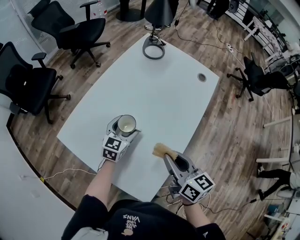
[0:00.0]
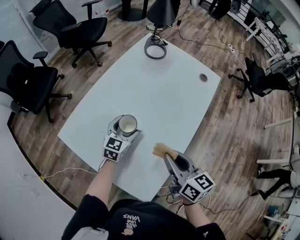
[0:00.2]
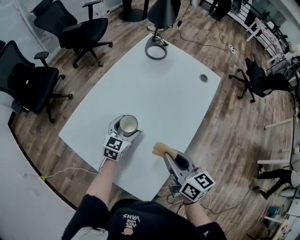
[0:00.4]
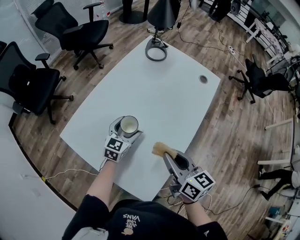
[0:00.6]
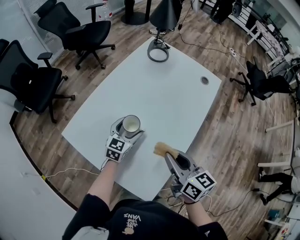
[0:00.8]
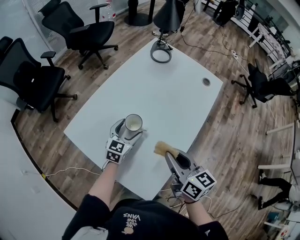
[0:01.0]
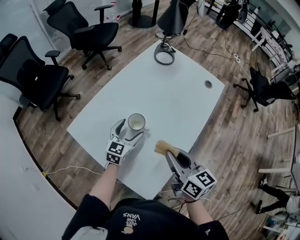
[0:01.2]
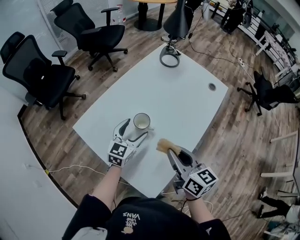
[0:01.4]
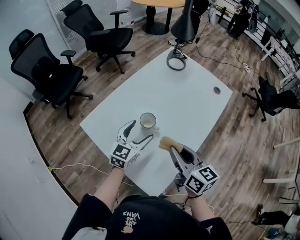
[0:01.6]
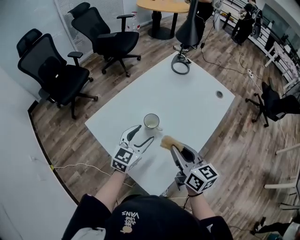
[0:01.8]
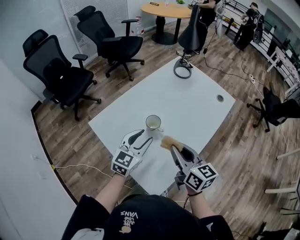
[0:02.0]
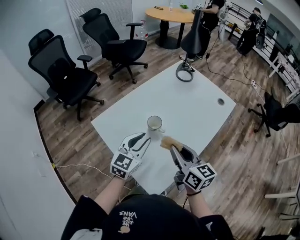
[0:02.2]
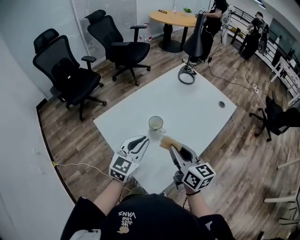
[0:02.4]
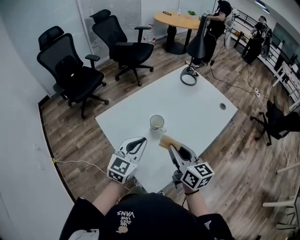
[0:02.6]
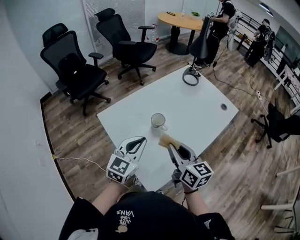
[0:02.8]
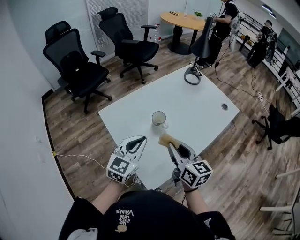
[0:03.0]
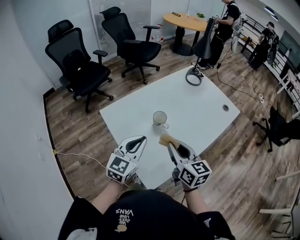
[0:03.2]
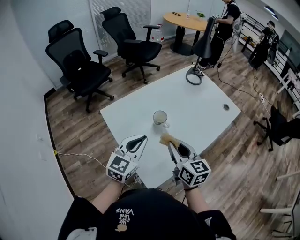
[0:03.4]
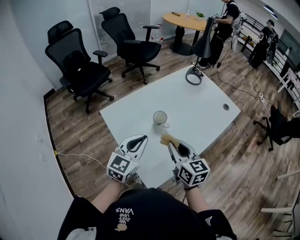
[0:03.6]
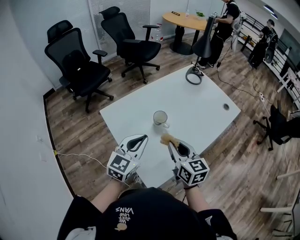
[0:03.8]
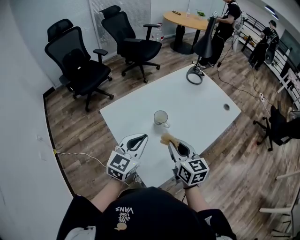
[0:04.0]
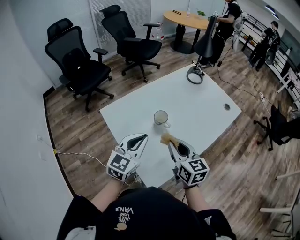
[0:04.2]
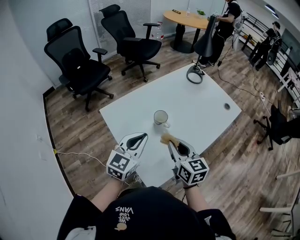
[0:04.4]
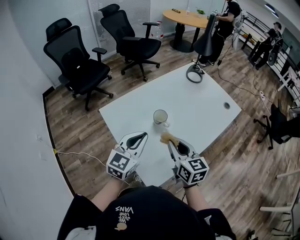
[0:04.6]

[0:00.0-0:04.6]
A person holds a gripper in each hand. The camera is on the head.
0.0 to 1.6 s: The left gripper moves upward and backward, about 10 cm, while the right gripper changes place by some 5 cm.
1.6 to 3.0 s: The left gripper moves backward and upward, some 15 cm, and closes; the right gripper ends up about 5 cm from where it was.
3.0 to 4.6 s: The grippers move only a little.

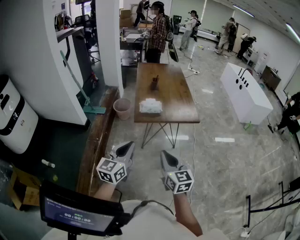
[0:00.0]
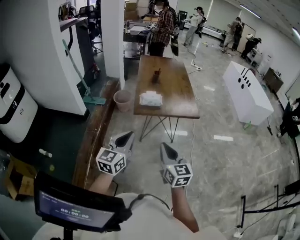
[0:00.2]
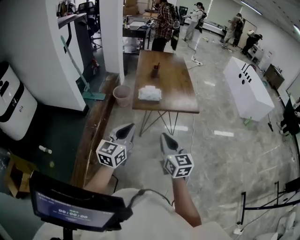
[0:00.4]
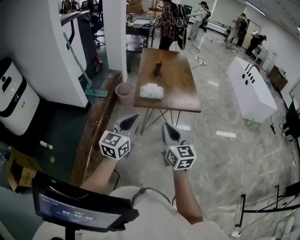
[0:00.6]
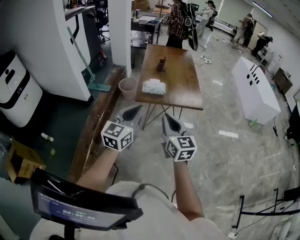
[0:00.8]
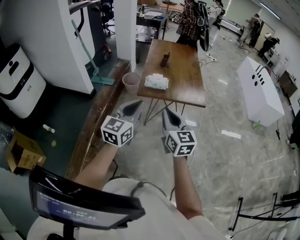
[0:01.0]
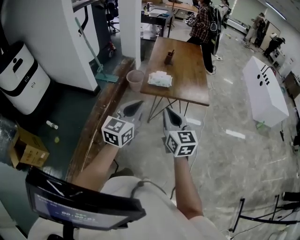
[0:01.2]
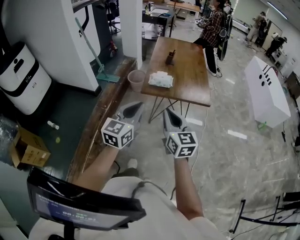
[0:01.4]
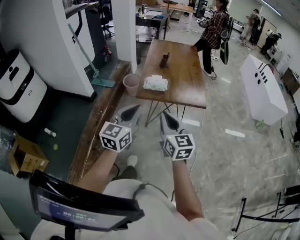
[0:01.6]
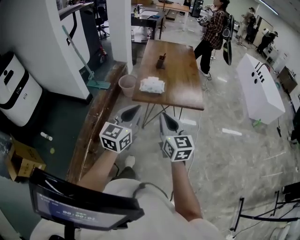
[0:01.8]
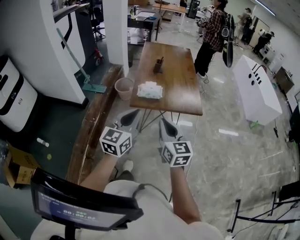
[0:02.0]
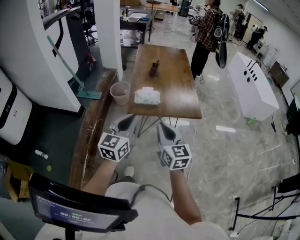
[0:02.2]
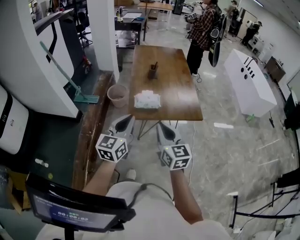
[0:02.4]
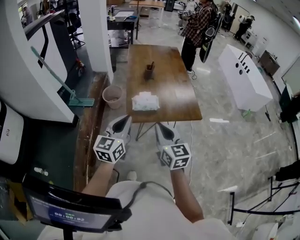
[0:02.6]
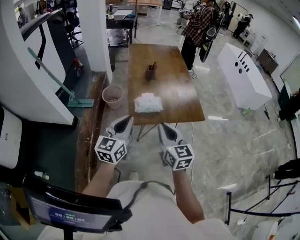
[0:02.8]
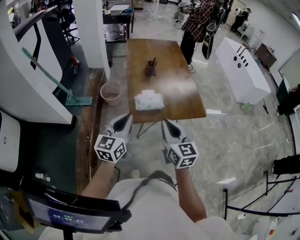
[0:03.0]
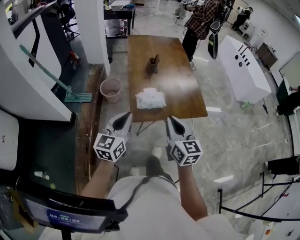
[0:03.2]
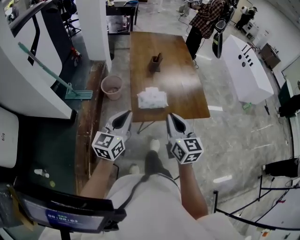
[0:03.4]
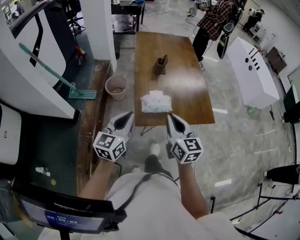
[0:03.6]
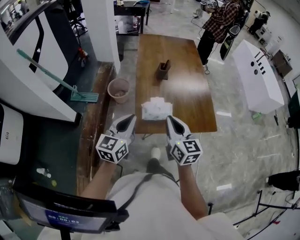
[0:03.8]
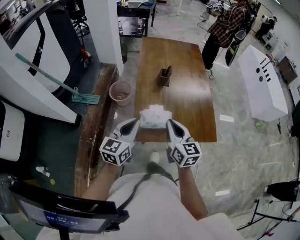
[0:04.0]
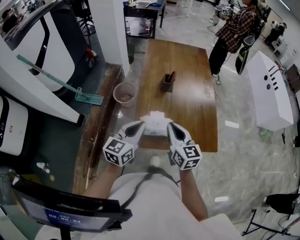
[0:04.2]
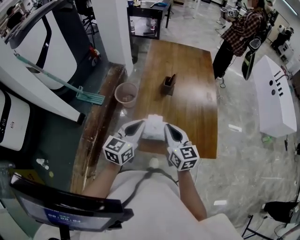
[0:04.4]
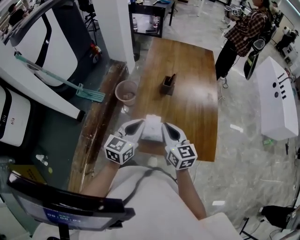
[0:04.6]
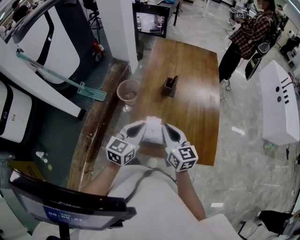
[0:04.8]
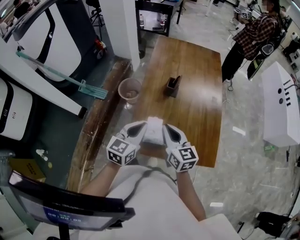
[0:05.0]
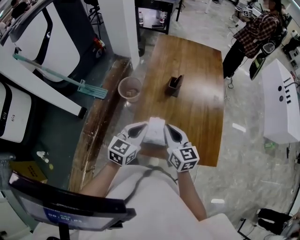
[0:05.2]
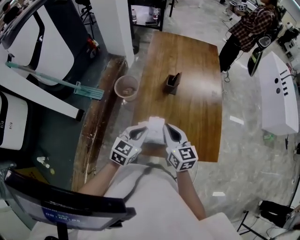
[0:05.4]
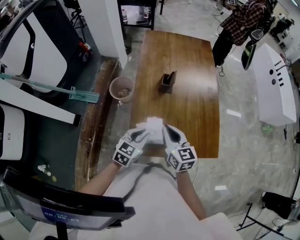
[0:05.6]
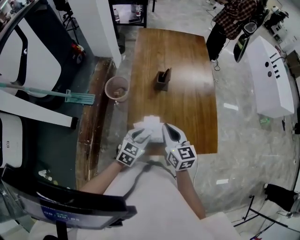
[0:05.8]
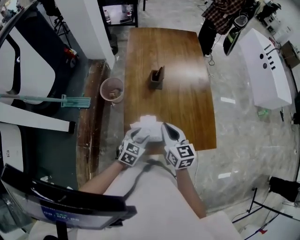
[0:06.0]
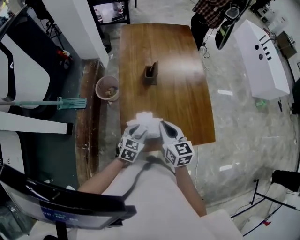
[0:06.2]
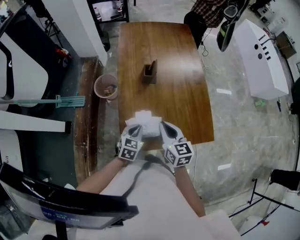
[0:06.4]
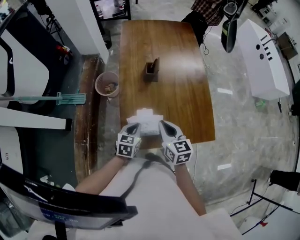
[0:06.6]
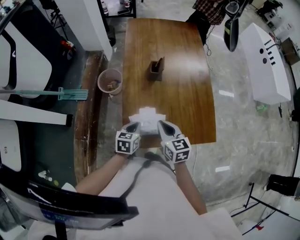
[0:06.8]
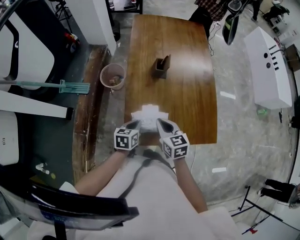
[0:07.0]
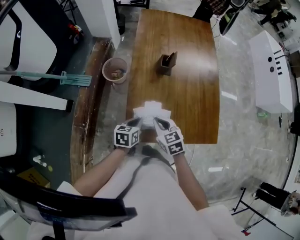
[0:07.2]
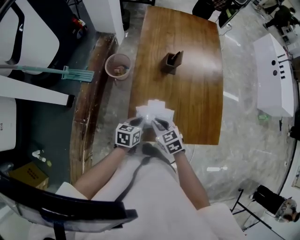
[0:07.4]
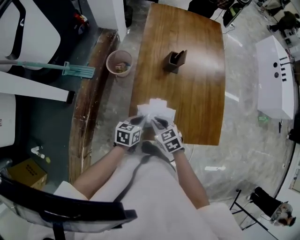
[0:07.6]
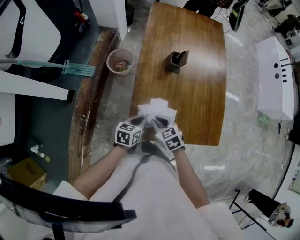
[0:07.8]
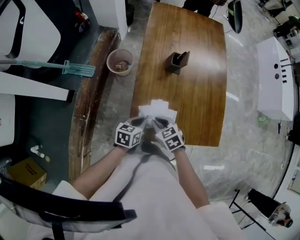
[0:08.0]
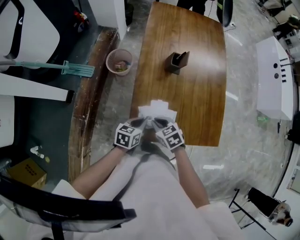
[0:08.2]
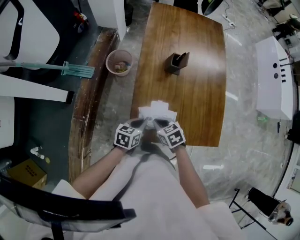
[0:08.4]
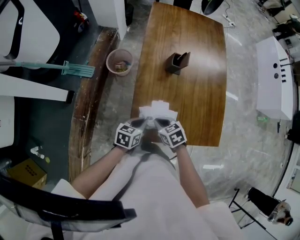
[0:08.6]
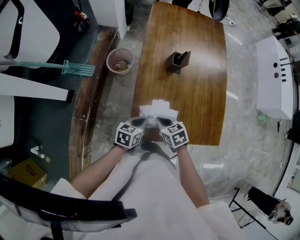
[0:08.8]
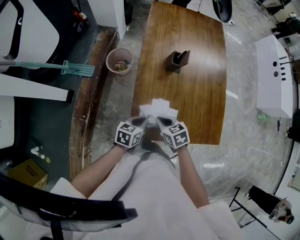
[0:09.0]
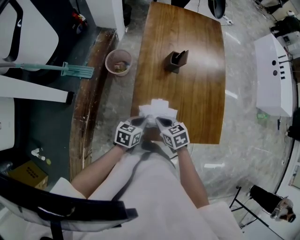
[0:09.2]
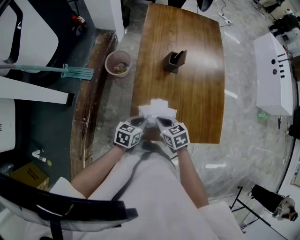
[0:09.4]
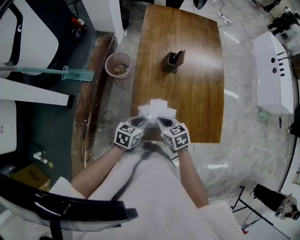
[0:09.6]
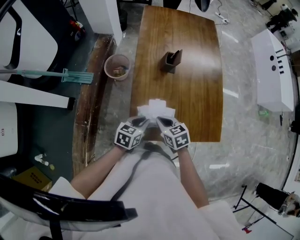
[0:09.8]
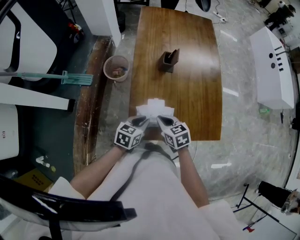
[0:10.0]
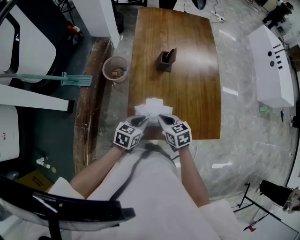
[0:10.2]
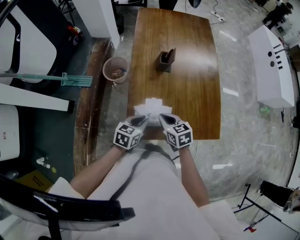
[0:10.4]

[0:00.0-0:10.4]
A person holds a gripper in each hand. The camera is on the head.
0.0 to 1.4 s: The left gripper heads to the right, covering approximately 10 cm, while the right gripper heads forward, covering about 5 cm.
1.4 to 3.0 s: The left gripper travels forward and to the left by about 30 cm, while the right gripper shifts some 20 cm forward.
3.0 to 4.4 s: The two grippers go some 25 cm forward.
4.4 to 6.0 s: The left gripper heads downward, covering roughly 20 cm, turns by approximately 30 degrees, and opens, while the right gripper ends up approximately 5 cm from where it was.
6.0 to 7.4 s: The left gripper ends up some 5 cm from where it was, swivels about 30 degrees, and closes its fingers; the right gripper heads downward and to the left, covering about 15 cm, and changes its angle by some 40 degrees.
7.4 to 9.0 s: The grippers move only a little.
9.0 to 10.4 s: The right gripper shifts by roughly 5 cm.

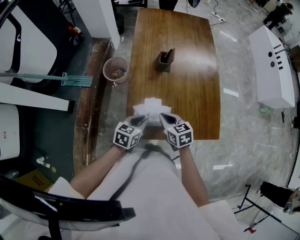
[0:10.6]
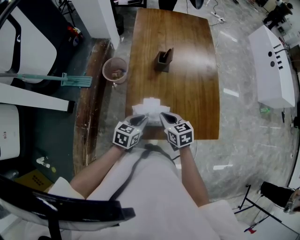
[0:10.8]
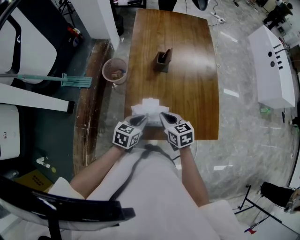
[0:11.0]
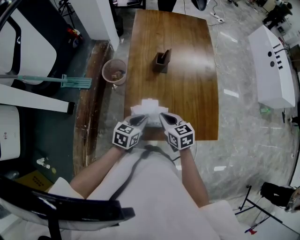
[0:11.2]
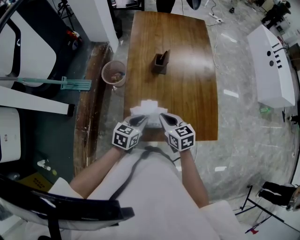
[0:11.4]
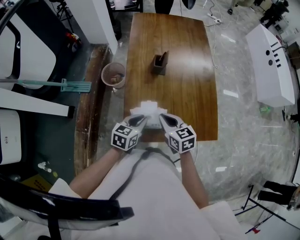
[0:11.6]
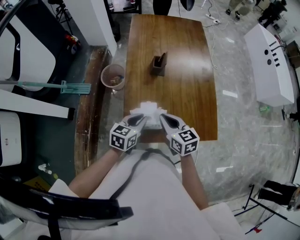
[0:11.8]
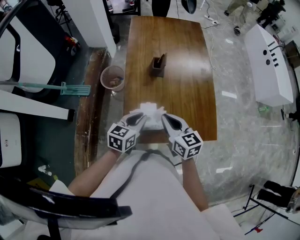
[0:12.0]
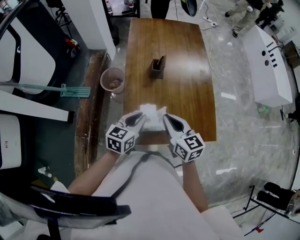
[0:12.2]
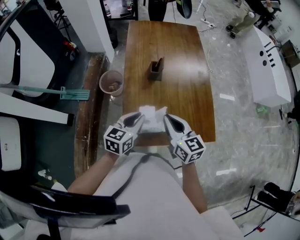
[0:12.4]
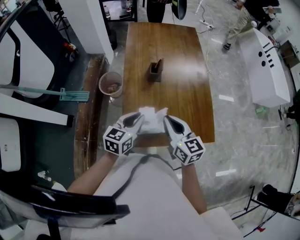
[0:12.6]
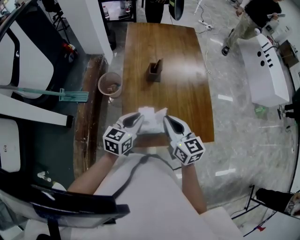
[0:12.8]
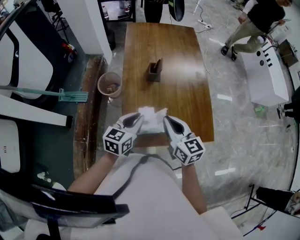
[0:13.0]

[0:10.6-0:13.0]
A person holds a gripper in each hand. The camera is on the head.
10.6 to 11.8 s: The left gripper shifts by roughly 5 cm. The right gripper heads upward, covering some 10 cm.
11.8 to 13.0 s: The two grippers go approximately 5 cm upward.

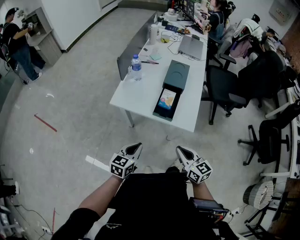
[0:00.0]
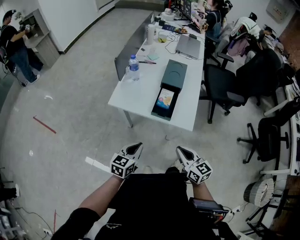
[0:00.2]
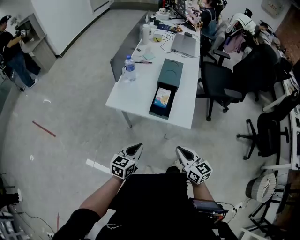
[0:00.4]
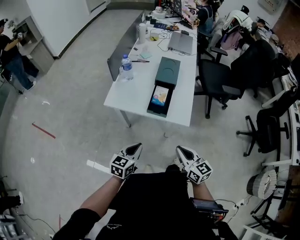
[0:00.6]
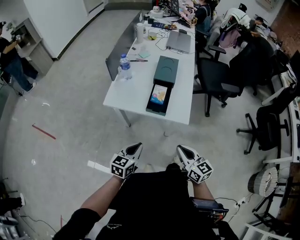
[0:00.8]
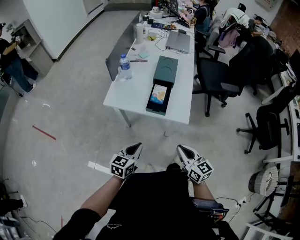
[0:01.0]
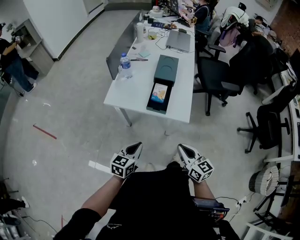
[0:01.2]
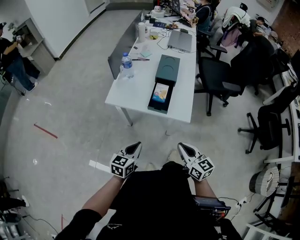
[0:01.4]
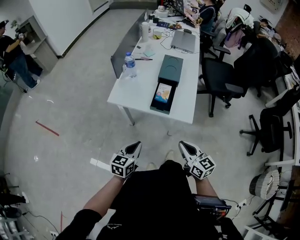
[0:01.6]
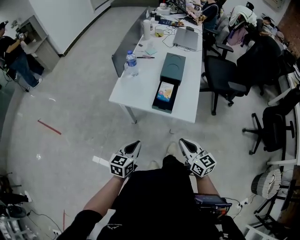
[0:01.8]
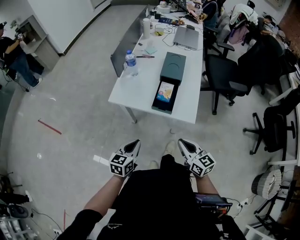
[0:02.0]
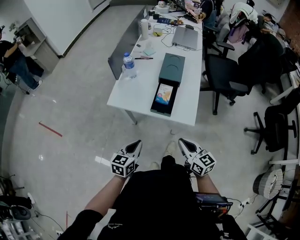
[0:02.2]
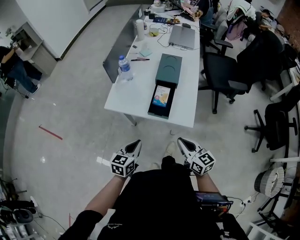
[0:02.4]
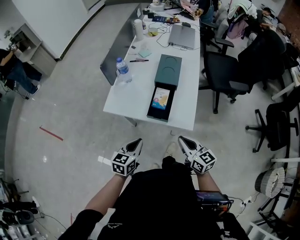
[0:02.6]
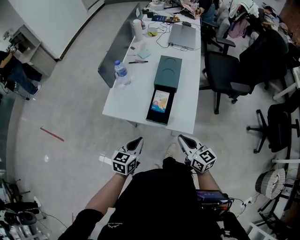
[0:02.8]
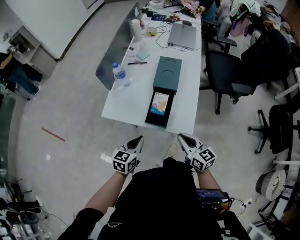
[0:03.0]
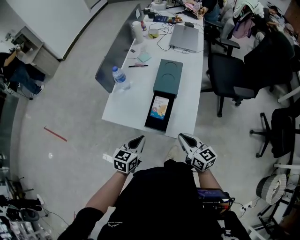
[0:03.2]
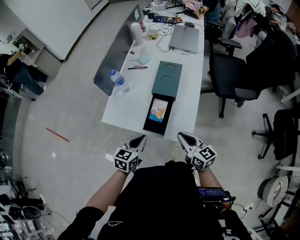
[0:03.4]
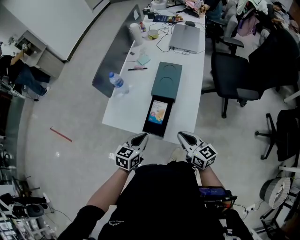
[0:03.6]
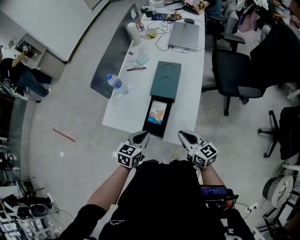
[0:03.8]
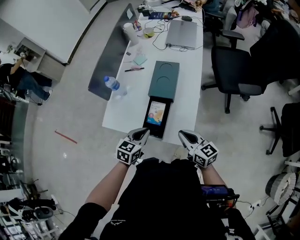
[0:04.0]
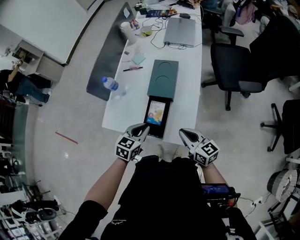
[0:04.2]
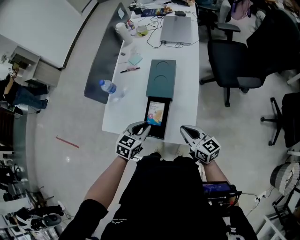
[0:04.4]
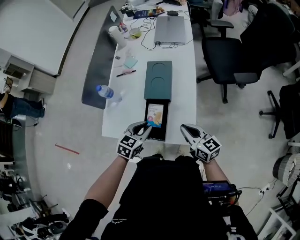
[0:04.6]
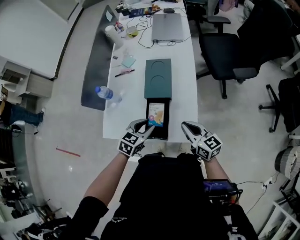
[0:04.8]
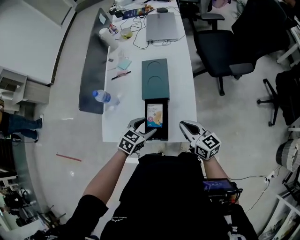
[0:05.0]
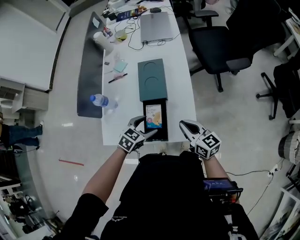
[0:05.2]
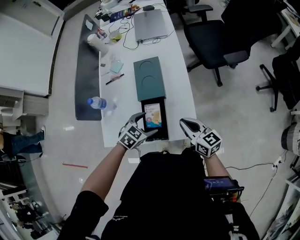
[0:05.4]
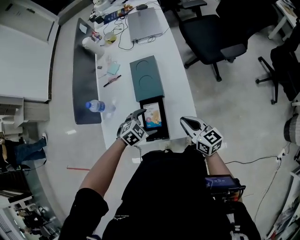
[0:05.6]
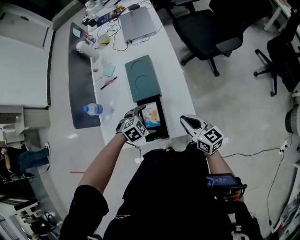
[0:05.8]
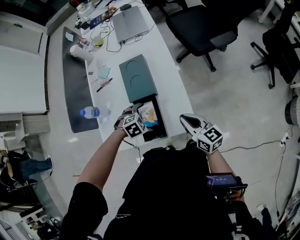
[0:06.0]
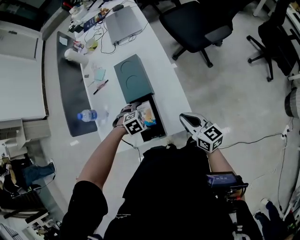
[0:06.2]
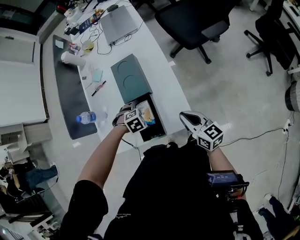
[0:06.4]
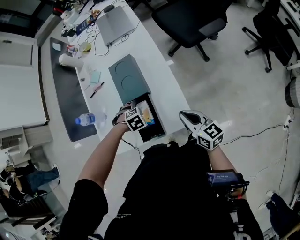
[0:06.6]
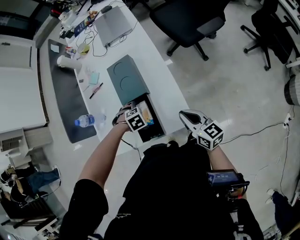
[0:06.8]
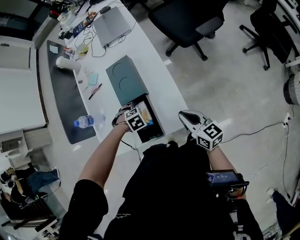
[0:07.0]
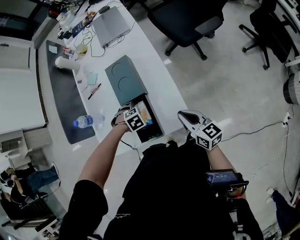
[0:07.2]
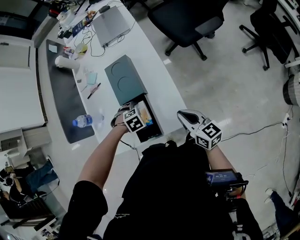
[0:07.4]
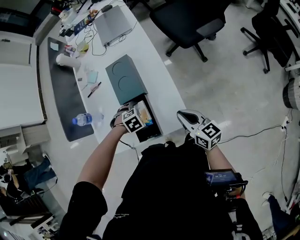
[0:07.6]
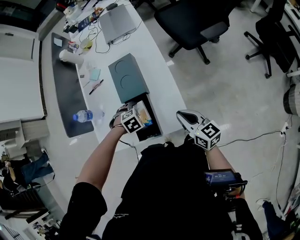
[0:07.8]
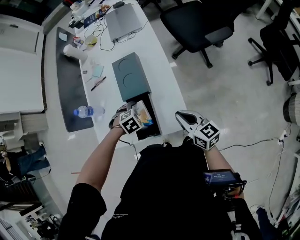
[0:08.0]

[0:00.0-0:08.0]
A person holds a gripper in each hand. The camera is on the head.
0.0 to 1.6 s: The grippers stay close to where they were, moving slightly.
1.6 to 3.2 s: The right gripper travels forward by approximately 15 cm, while the left gripper is displaced forward and to the right by approximately 15 cm.
3.2 to 4.8 s: The left gripper heads forward and to the right, covering about 15 cm, and rotates about 30 degrees. Meanwhile the right gripper shifts about 10 cm forward.
4.8 to 6.4 s: The left gripper travels downward by roughly 10 cm, angles its fingers downward, by some 40 degrees, and opens its fingers.
6.4 to 8.0 s: There are only small adjustments of the grippers.
